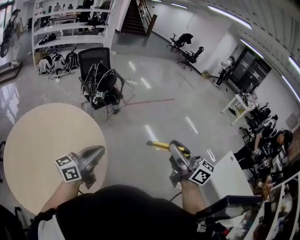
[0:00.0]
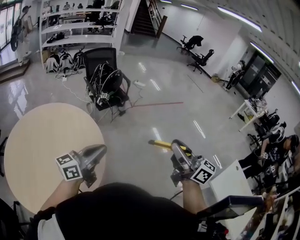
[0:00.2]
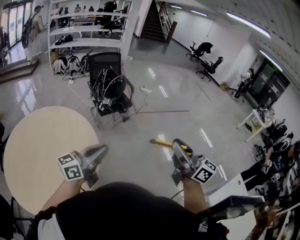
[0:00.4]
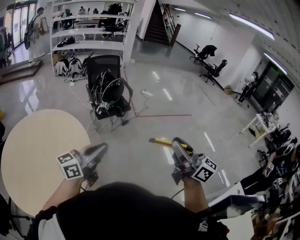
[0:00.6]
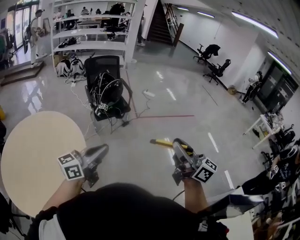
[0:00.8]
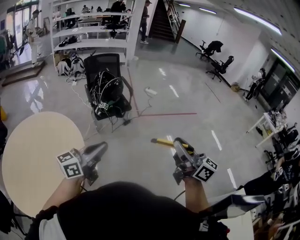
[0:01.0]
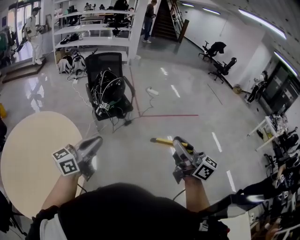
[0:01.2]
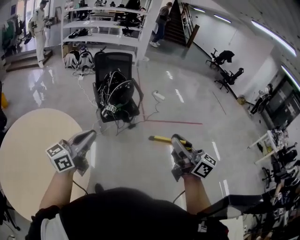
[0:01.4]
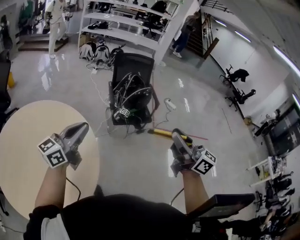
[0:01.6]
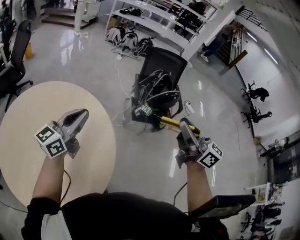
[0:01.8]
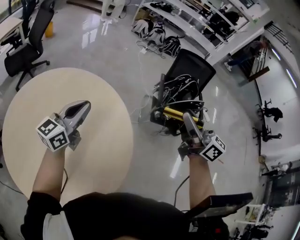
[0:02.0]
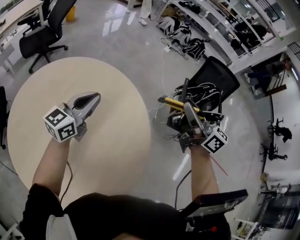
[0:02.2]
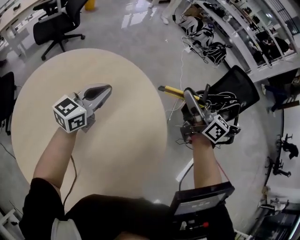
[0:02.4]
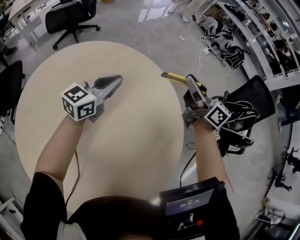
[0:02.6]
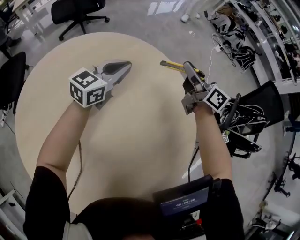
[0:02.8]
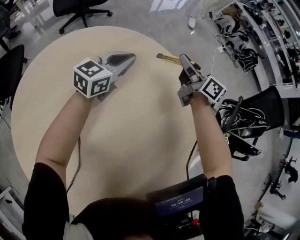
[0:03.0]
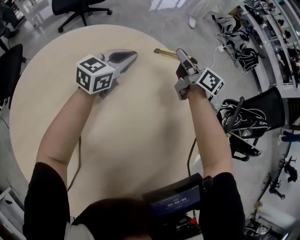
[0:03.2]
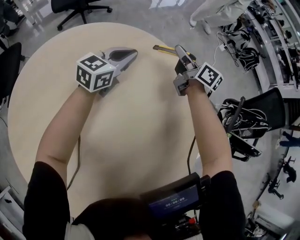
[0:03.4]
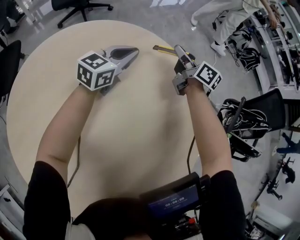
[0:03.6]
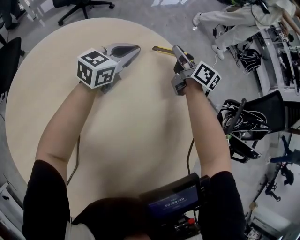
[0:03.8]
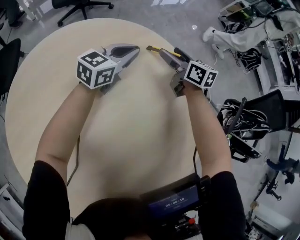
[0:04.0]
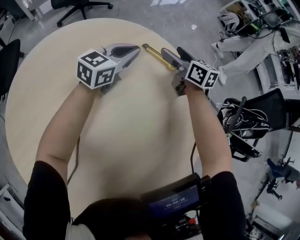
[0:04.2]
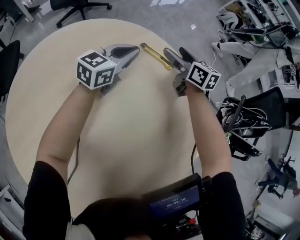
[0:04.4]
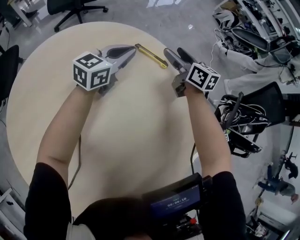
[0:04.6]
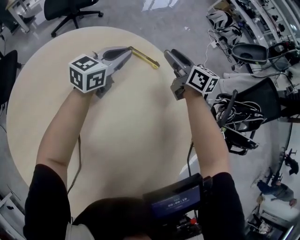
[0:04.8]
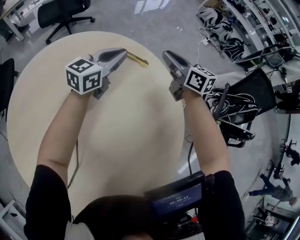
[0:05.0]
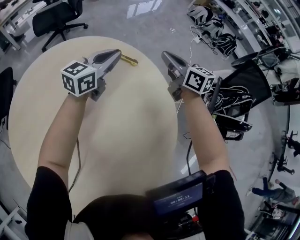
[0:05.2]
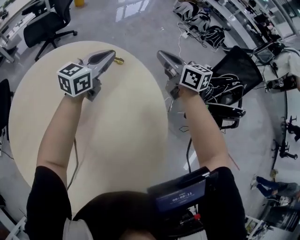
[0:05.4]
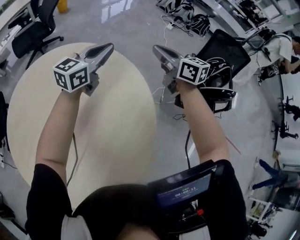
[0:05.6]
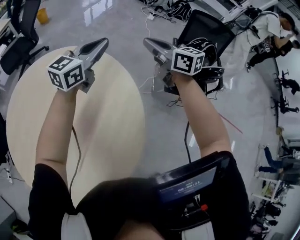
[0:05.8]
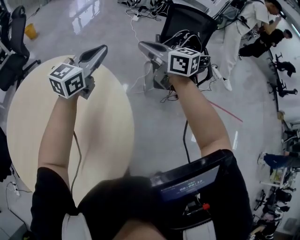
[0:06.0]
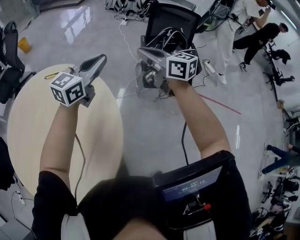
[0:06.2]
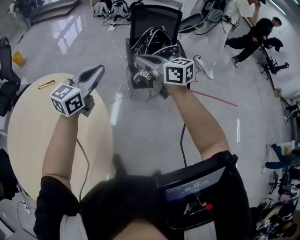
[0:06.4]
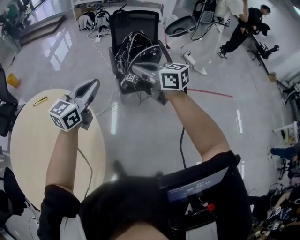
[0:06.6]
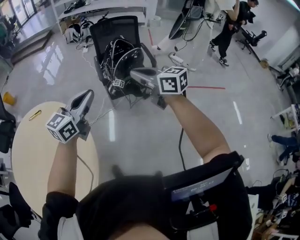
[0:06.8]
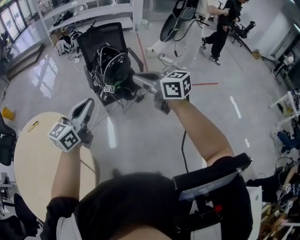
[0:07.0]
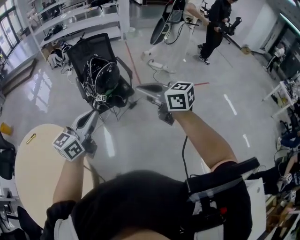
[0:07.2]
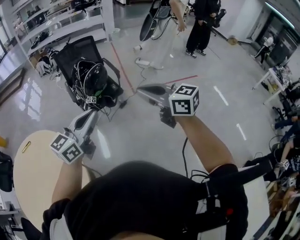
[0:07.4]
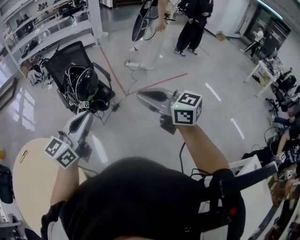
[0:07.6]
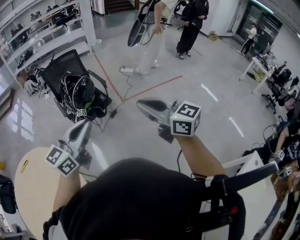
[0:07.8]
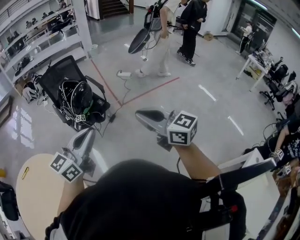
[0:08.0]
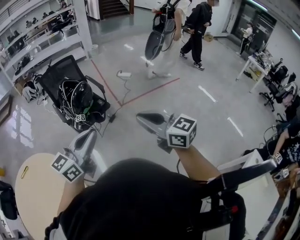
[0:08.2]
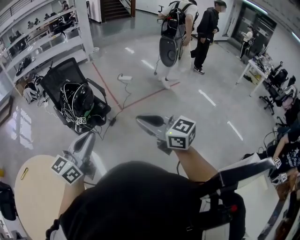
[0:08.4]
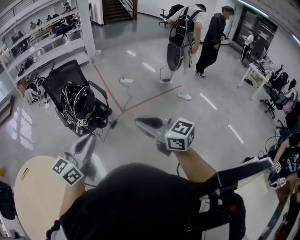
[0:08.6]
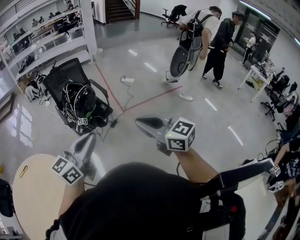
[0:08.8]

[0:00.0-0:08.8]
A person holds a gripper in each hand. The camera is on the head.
0:00.0 to 0:01.4: Both grippers travel together forward, some 35 cm. The left gripper rotates some 30 degrees.
0:01.4 to 0:03.0: The two grippers travel together, roughly 90 cm. The left gripper changes its angle by roughly 50 degrees. Meanwhile the right gripper turns by approximately 60 degrees.
0:03.0 to 0:04.4: The right gripper shifts roughly 10 cm downward, and opens its fingers.
0:04.4 to 0:05.8: Both grippers move to the right, upward and backward, approximately 40 cm. The left gripper turns by about 20 degrees, while the right gripper closes its fingers.
0:05.8 to 0:07.4: Both grippers are carried about 70 cm. The left gripper rotates some 40 degrees; the right gripper changes its angle by roughly 30 degrees.
0:07.4 to 0:08.8: The right gripper travels backward by about 5 cm.

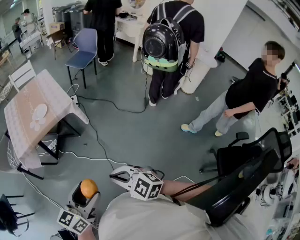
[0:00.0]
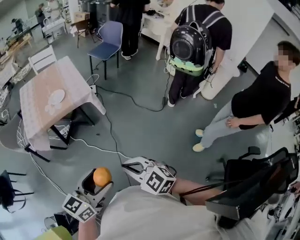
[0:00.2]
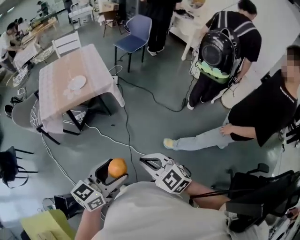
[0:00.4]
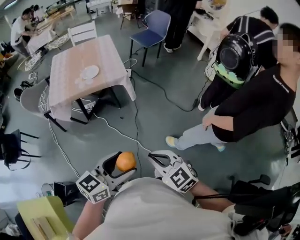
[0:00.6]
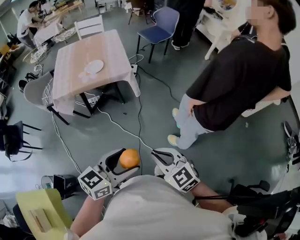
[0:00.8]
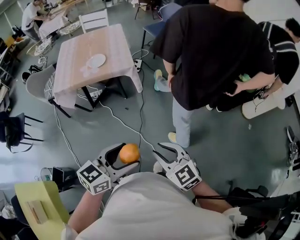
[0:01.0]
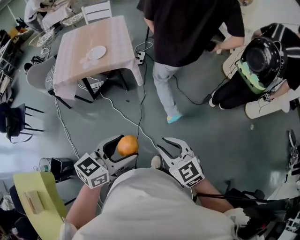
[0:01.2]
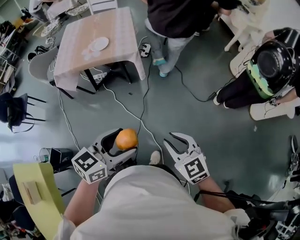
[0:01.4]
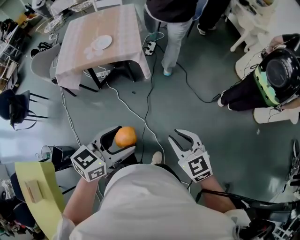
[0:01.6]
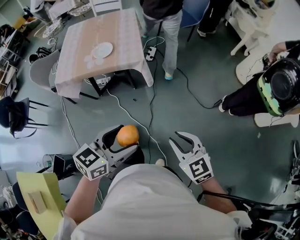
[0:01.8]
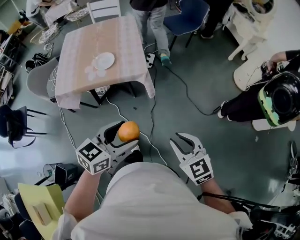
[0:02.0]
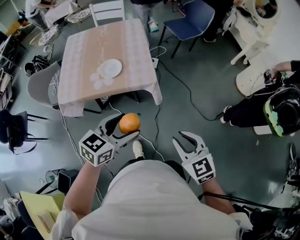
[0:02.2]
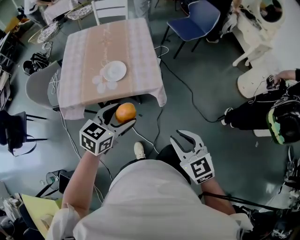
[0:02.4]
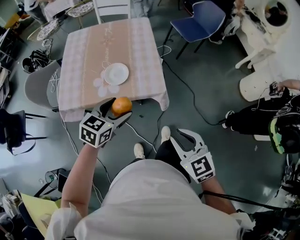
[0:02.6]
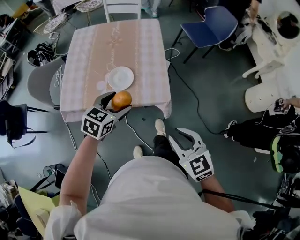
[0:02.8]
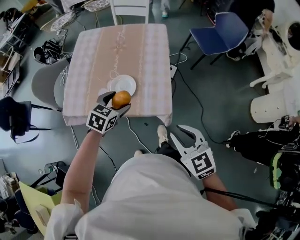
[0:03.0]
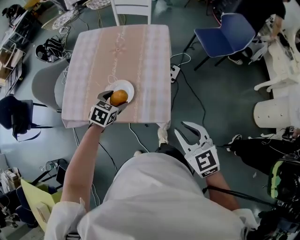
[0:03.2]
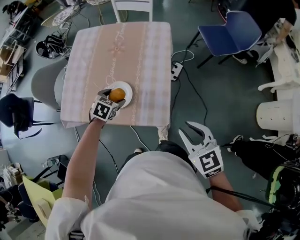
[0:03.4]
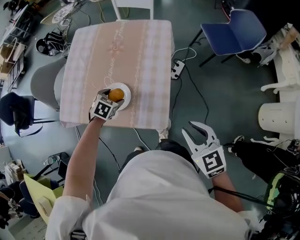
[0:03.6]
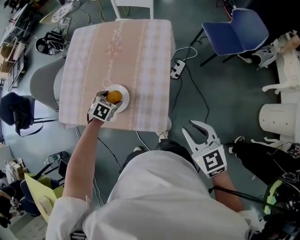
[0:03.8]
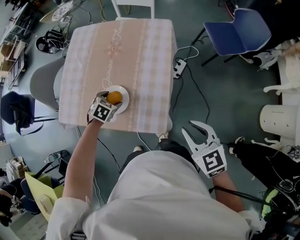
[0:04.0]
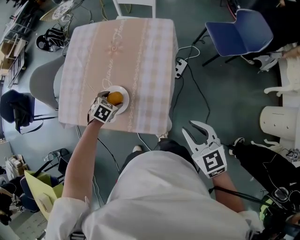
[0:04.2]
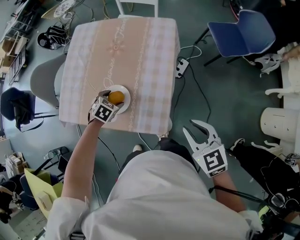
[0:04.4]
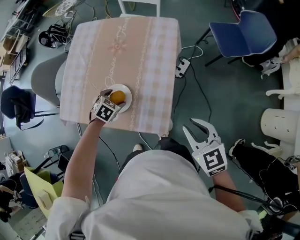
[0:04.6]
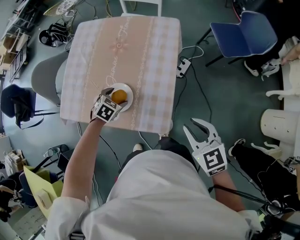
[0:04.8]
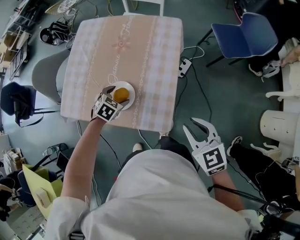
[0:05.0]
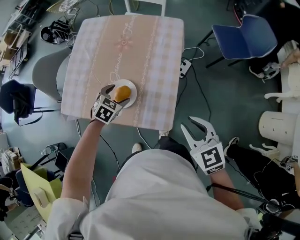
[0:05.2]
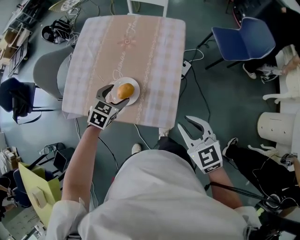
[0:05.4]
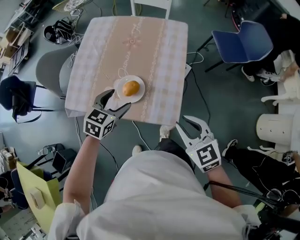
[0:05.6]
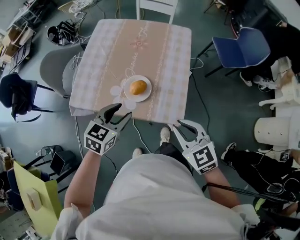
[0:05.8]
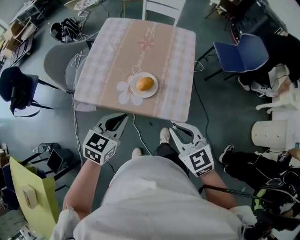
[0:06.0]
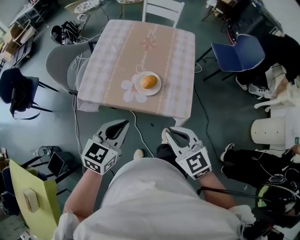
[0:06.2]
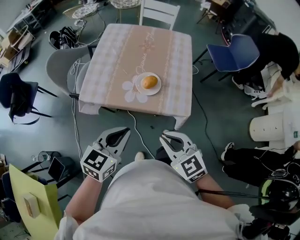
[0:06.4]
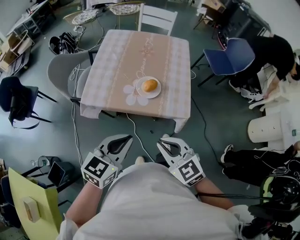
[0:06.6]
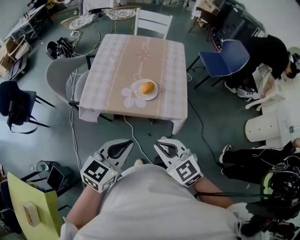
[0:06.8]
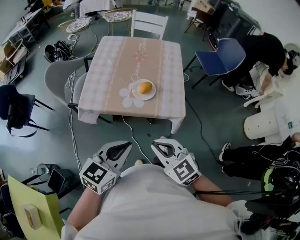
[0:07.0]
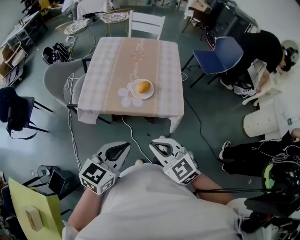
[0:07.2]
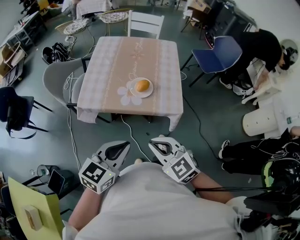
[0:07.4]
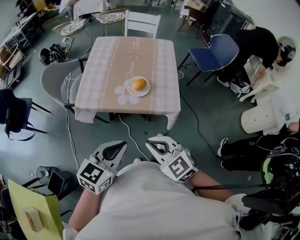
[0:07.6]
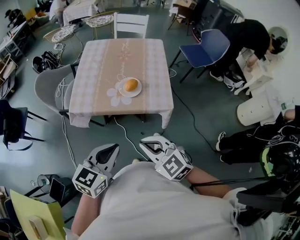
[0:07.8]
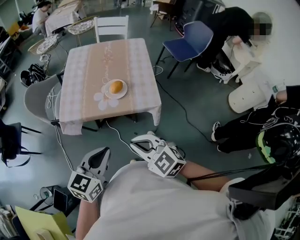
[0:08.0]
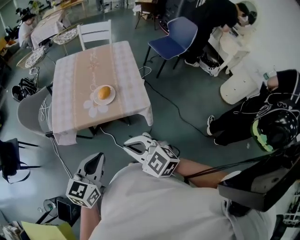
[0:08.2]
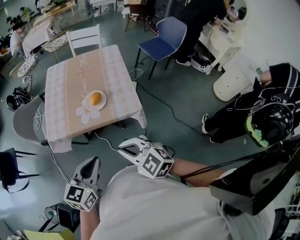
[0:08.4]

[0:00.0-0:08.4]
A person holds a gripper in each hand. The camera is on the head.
0:00.0 to 0:01.4: The two grippers go some 20 cm to the right and forward. The right gripper opens up.
0:01.4 to 0:02.8: Both grippers are carried forward and to the left, roughly 50 cm. The left gripper swivels approximately 20 degrees.
0:02.8 to 0:04.2: The left gripper moves downward and forward, some 25 cm, and tips its fingers downward by roughly 30 degrees, while the right gripper shifts some 25 cm forward and to the right.
0:04.2 to 0:05.6: The right gripper heads to the left, covering approximately 10 cm. Meanwhile the left gripper travels upward and backward by approximately 15 cm, and tilts its fingers approximately 30 degrees upward.
0:05.6 to 0:07.0: The right gripper shifts some 30 cm to the left and backward, while the left gripper goes about 30 cm backward and upward, rotates roughly 20 degrees, and closes.
0:07.0 to 0:08.4: The grippers stay close to where they were, moving slightly.

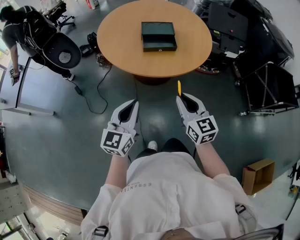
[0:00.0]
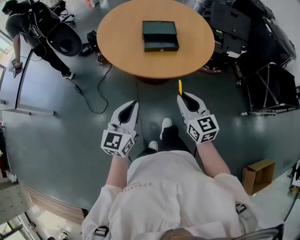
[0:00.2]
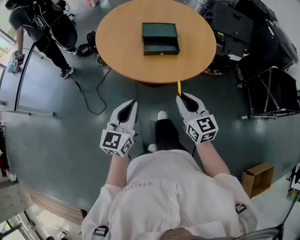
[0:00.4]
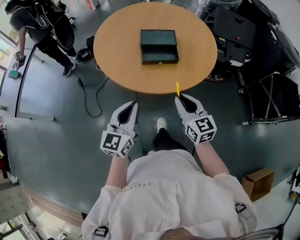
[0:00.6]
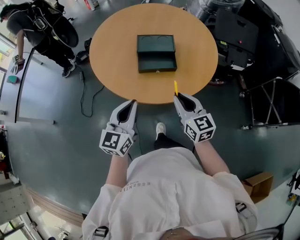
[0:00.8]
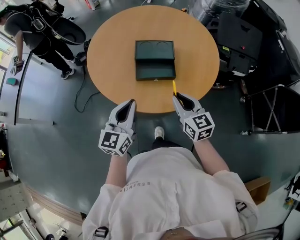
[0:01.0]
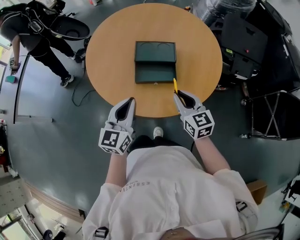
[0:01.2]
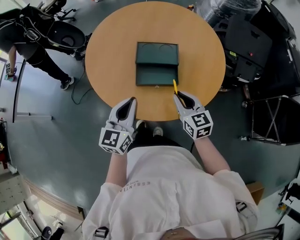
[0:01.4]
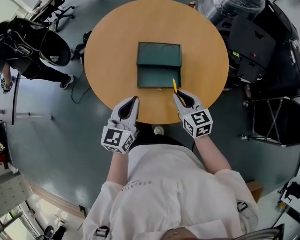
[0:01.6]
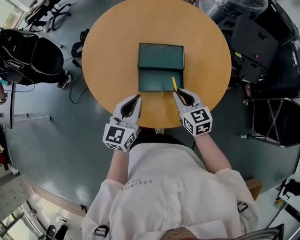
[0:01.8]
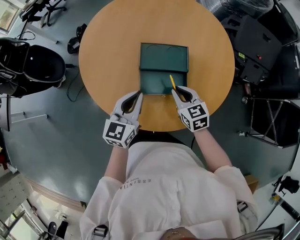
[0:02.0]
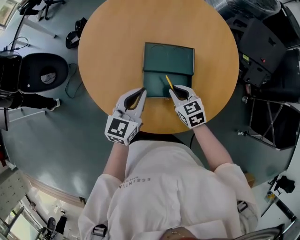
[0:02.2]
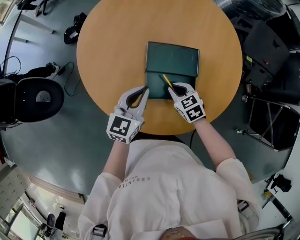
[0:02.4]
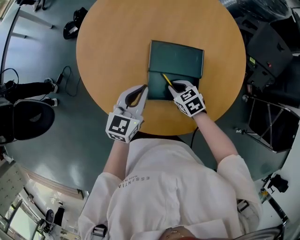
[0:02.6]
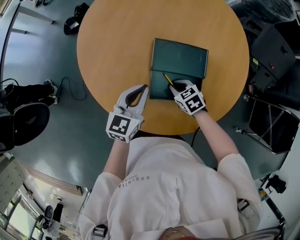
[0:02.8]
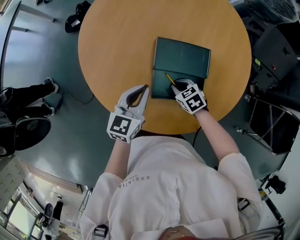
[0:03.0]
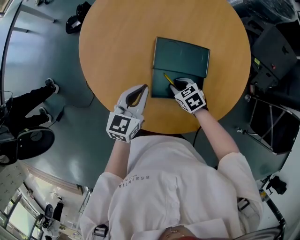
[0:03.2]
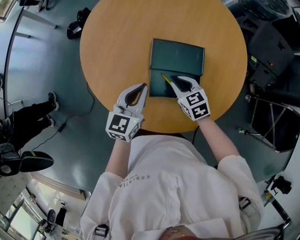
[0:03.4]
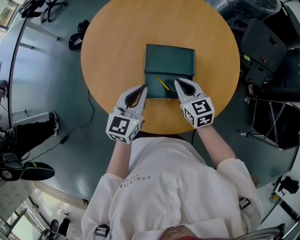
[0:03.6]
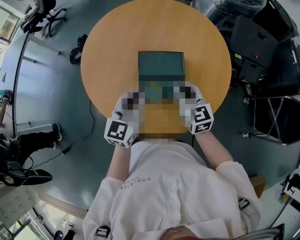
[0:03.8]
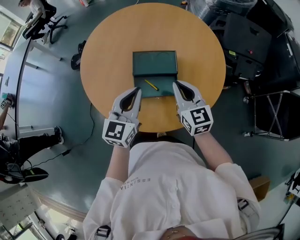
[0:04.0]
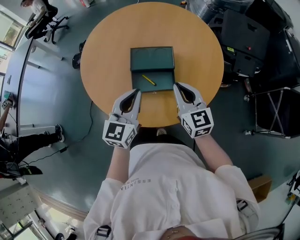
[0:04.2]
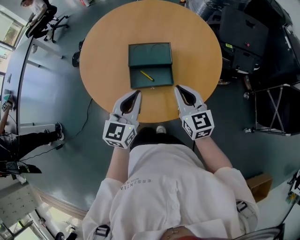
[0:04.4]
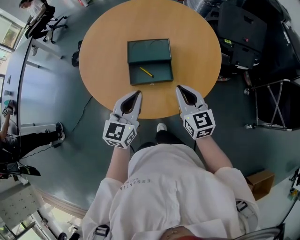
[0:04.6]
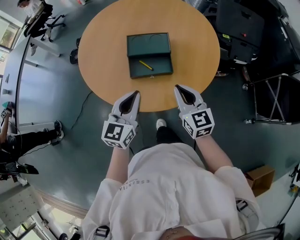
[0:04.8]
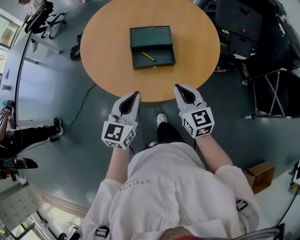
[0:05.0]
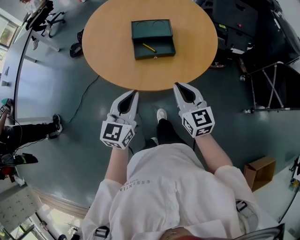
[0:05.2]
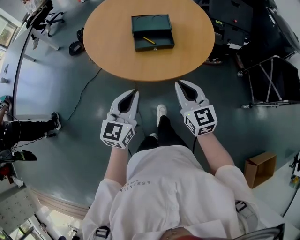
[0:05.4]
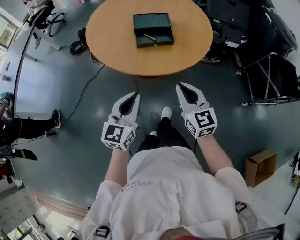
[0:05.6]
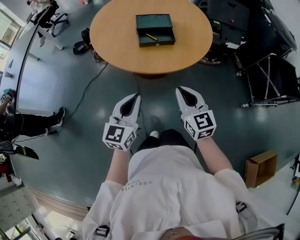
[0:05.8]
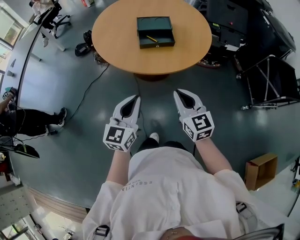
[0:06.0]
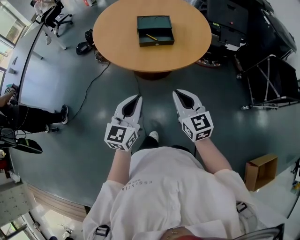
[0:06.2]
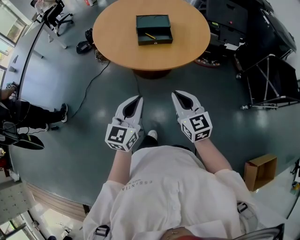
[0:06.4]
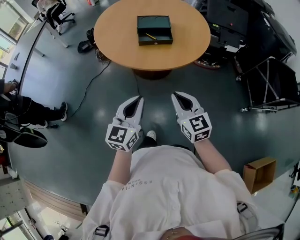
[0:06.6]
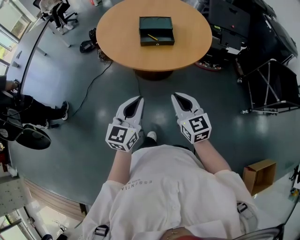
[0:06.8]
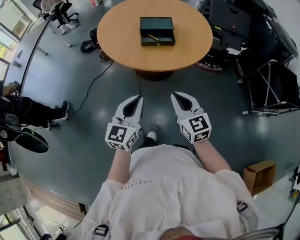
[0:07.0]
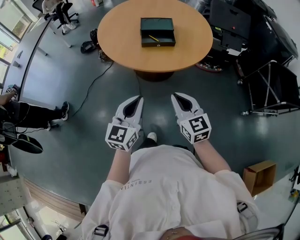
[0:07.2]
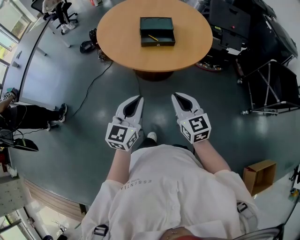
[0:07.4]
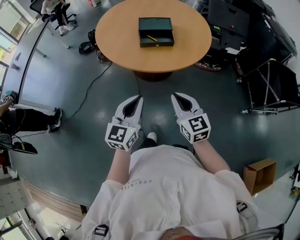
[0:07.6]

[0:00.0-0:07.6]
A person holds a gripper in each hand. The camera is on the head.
0:00.0 to 0:01.6: The two grippers go approximately 35 cm forward.
0:01.6 to 0:03.0: The left gripper is displaced forward and downward by roughly 15 cm. Meanwhile the right gripper is displaced downward and forward by roughly 20 cm, and tips its fingers downward by some 40 degrees.
0:03.0 to 0:04.6: The right gripper moves upward, backward and to the right, roughly 30 cm, and tips its fingers upward by some 50 degrees. The left gripper is displaced backward, upward and to the right by about 20 cm.
0:04.6 to 0:06.0: Both grippers move backward, about 30 cm.
0:06.0 to 0:07.6: The grippers stay close to where they were, moving slightly.
